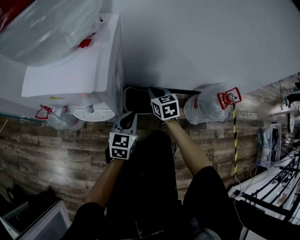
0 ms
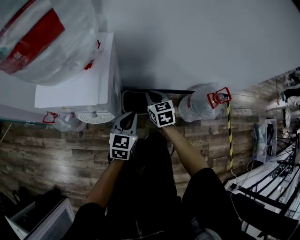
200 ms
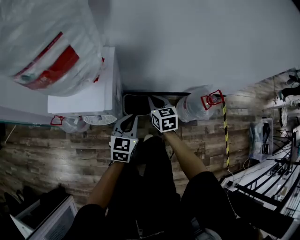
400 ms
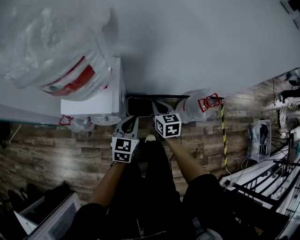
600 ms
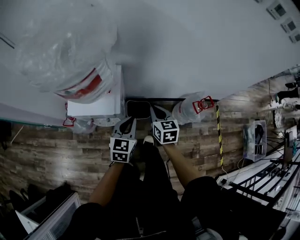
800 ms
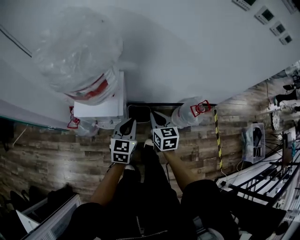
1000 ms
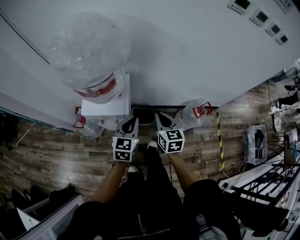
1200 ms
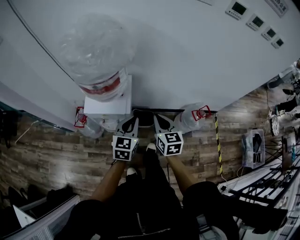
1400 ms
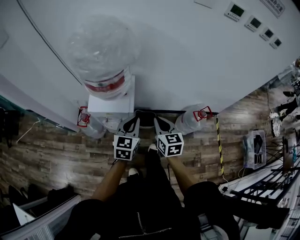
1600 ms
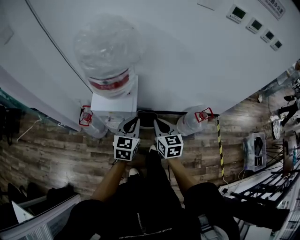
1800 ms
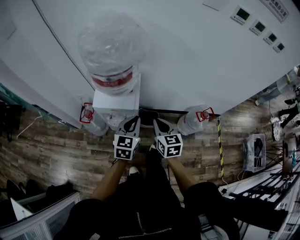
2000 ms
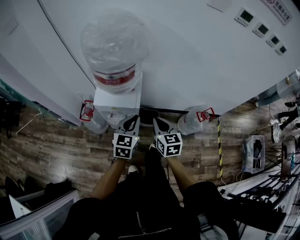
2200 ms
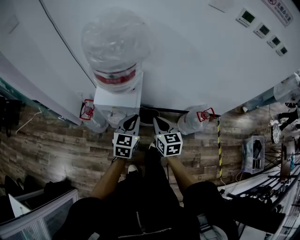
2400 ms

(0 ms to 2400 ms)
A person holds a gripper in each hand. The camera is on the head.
0 ms - 1200 ms: The two grippers go approximately 40 cm upward.
1200 ms - 2400 ms: The left gripper heads to the left, covering some 5 cm, while the right gripper heads to the left and backward, covering roughly 10 cm.

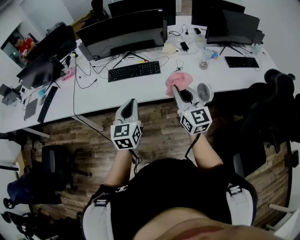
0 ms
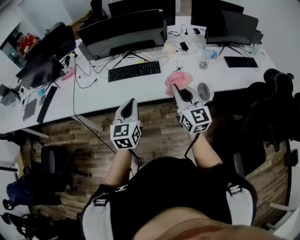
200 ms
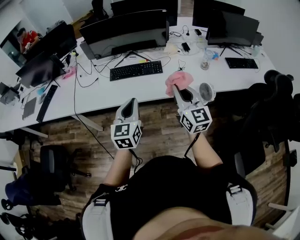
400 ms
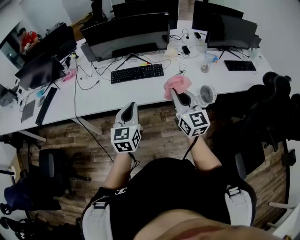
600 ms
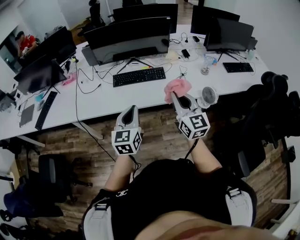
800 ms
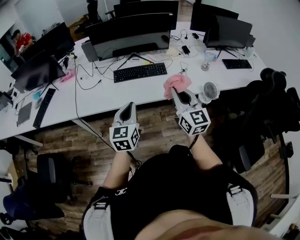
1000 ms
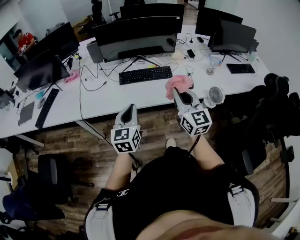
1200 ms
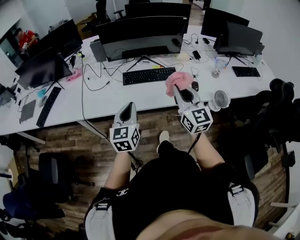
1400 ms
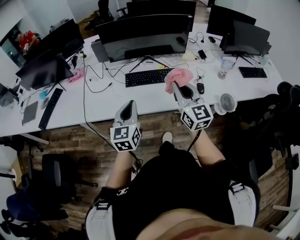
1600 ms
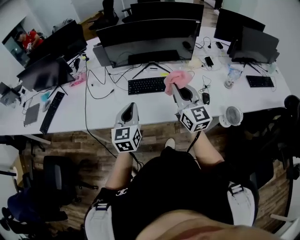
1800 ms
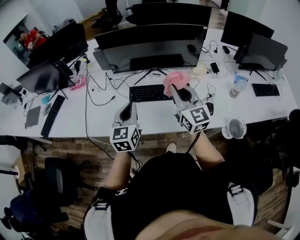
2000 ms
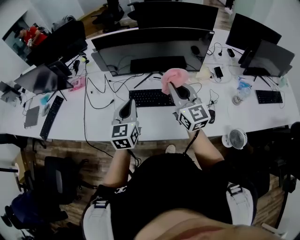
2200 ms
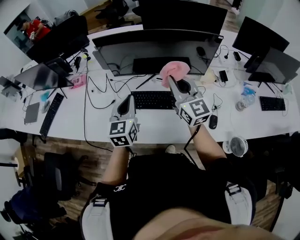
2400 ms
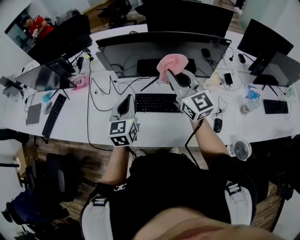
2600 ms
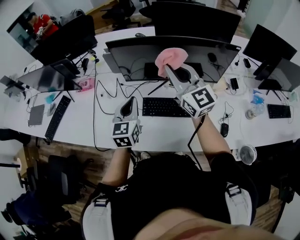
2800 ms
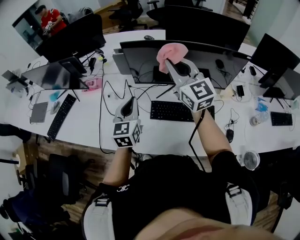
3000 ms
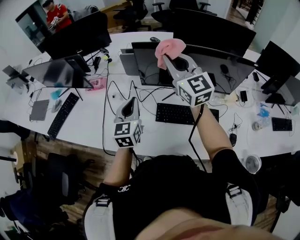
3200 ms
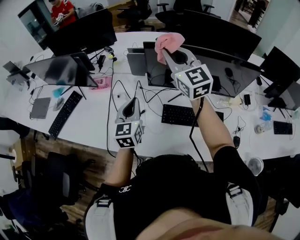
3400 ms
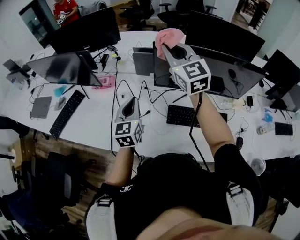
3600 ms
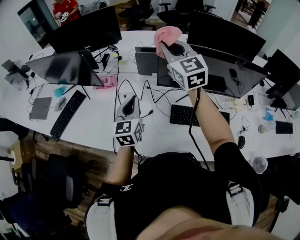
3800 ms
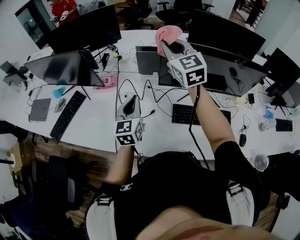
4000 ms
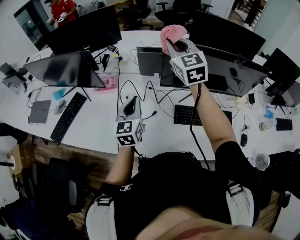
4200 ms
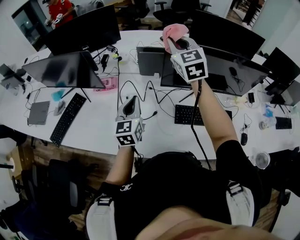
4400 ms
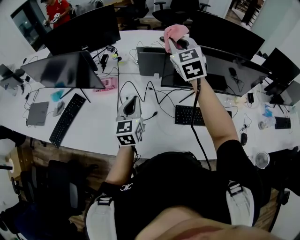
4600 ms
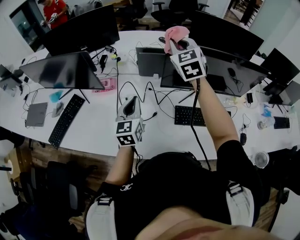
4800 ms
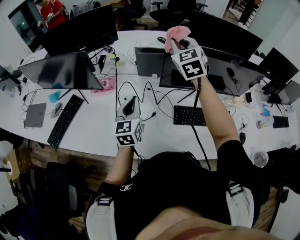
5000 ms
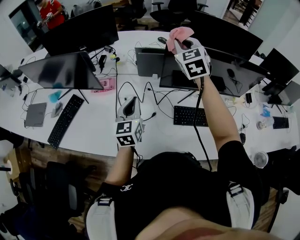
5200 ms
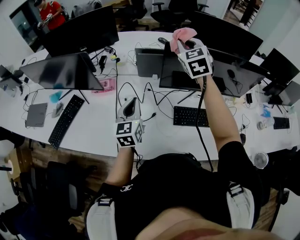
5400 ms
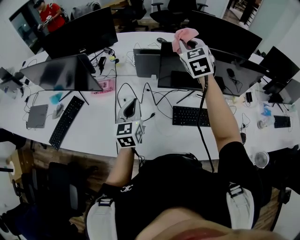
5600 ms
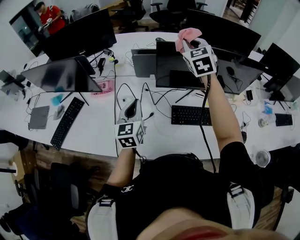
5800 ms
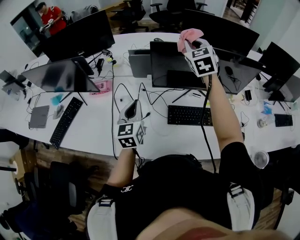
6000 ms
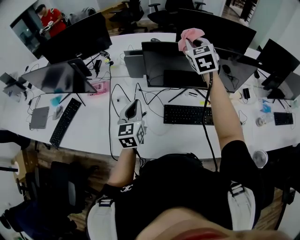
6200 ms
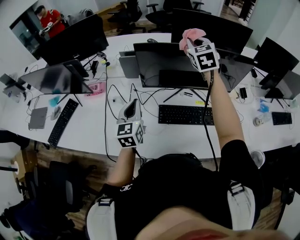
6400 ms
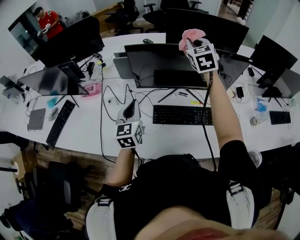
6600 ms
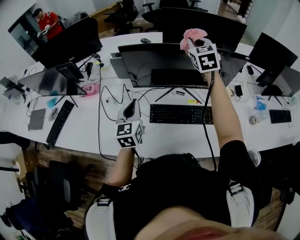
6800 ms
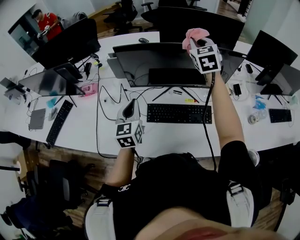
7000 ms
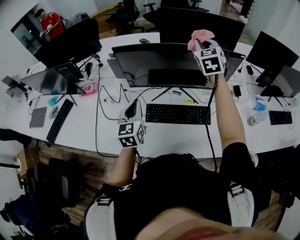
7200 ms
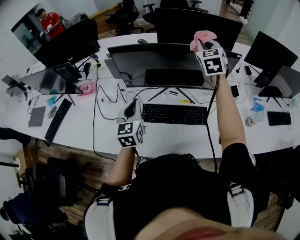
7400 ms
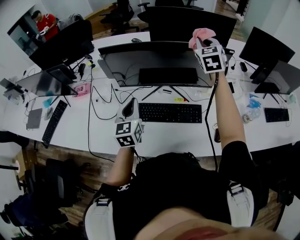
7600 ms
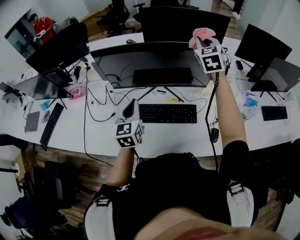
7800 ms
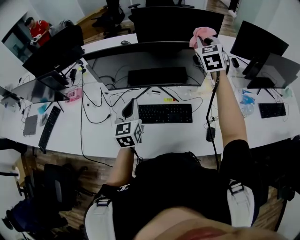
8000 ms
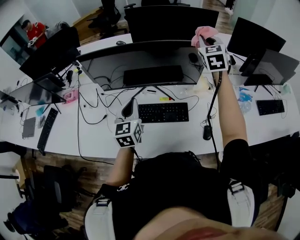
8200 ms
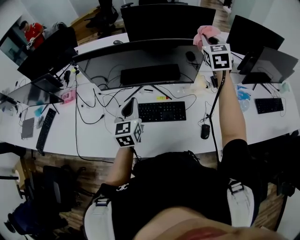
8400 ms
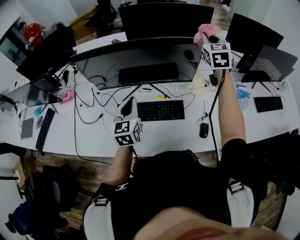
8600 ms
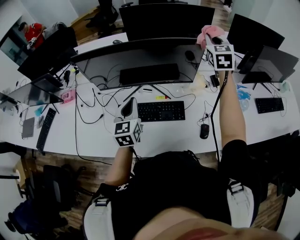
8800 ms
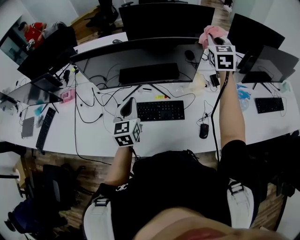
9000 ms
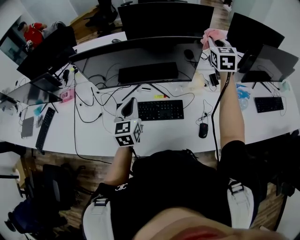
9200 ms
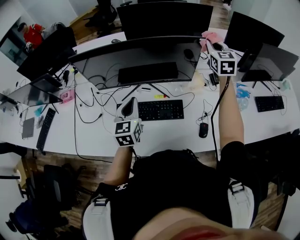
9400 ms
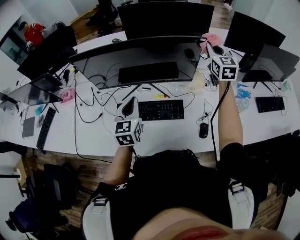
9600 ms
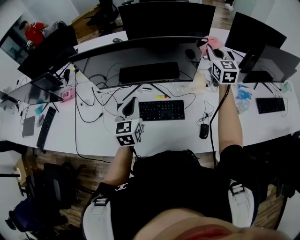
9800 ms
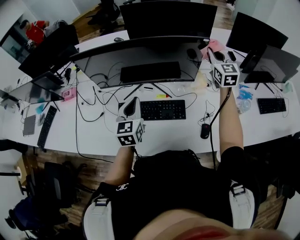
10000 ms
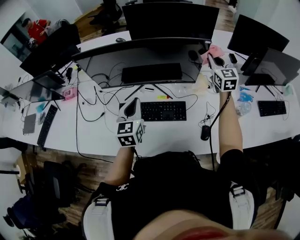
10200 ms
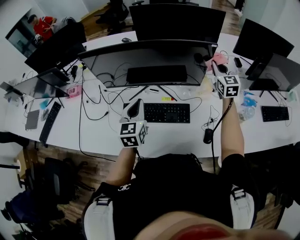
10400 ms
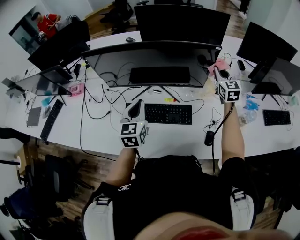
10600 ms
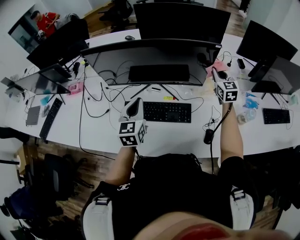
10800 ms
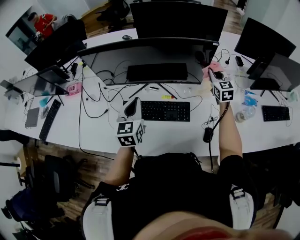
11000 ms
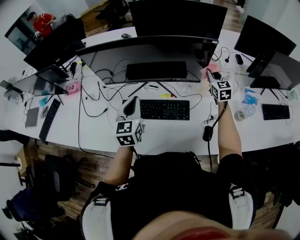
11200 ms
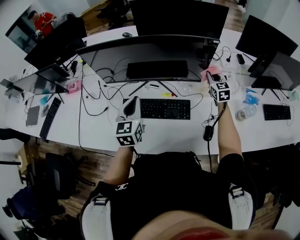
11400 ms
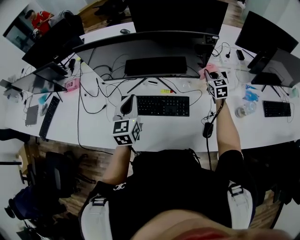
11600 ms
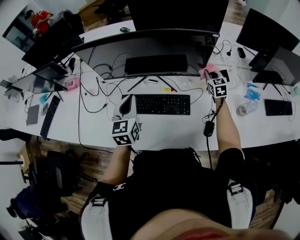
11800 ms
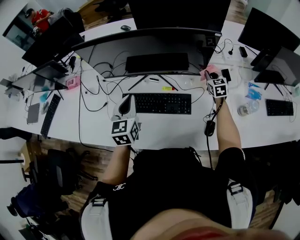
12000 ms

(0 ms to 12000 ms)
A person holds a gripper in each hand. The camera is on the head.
0 ms - 1600 ms: Both grippers travel together to the left and forward, about 20 cm.
1600 ms - 3000 ms: Both grippers travel together forward, approximately 35 cm.
3000 ms - 4400 ms: The left gripper shifts approximately 20 cm to the left and forward. The right gripper goes roughly 20 cm forward and to the left, and turns by about 20 degrees.
4400 ms - 6000 ms: The right gripper heads to the right, covering approximately 15 cm; the left gripper is displaced to the right by roughly 5 cm.
6000 ms - 7600 ms: Both grippers move to the right, some 25 cm.
7600 ms - 9000 ms: The left gripper travels to the right by about 10 cm, while the right gripper heads to the right, covering approximately 20 cm.
9000 ms - 10400 ms: The right gripper is displaced downward by some 15 cm.
10400 ms - 12000 ms: The right gripper heads downward, covering approximately 20 cm, and changes its angle by about 20 degrees.

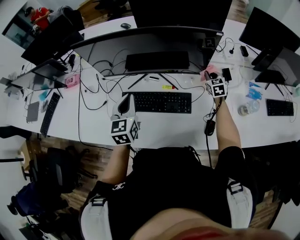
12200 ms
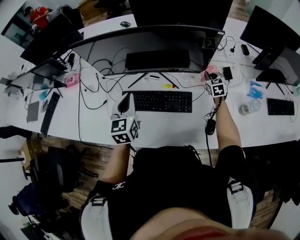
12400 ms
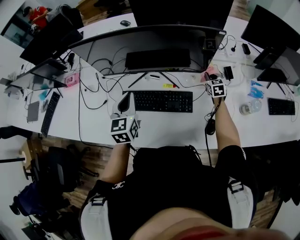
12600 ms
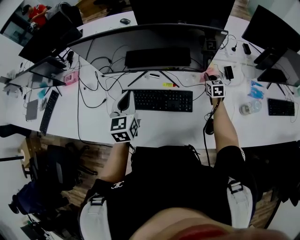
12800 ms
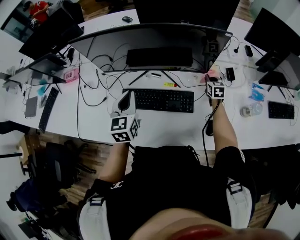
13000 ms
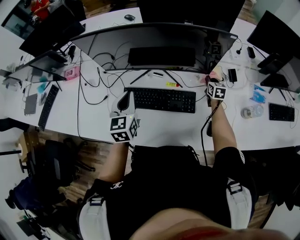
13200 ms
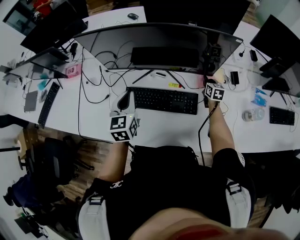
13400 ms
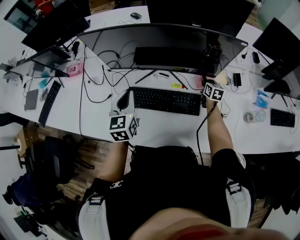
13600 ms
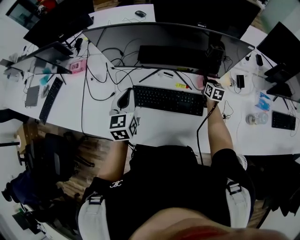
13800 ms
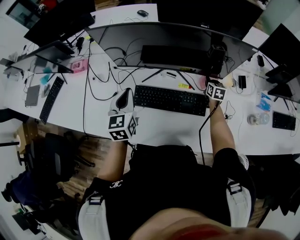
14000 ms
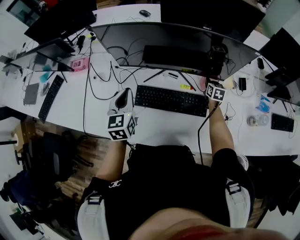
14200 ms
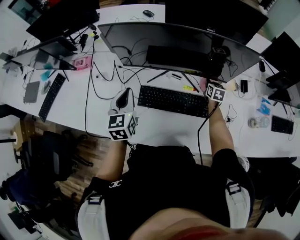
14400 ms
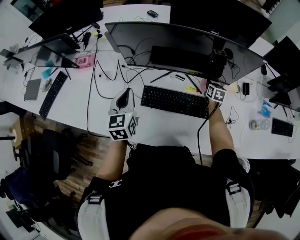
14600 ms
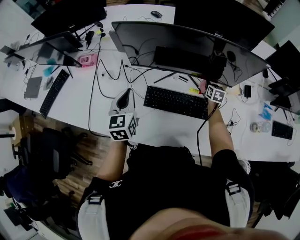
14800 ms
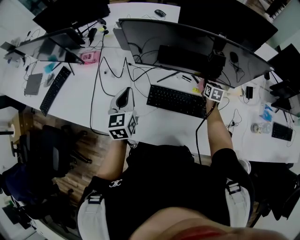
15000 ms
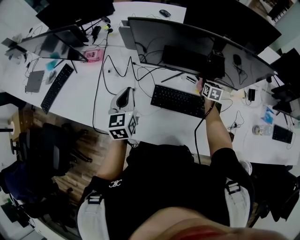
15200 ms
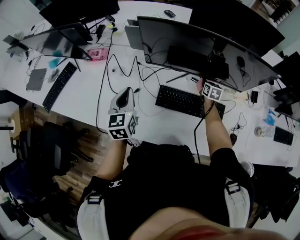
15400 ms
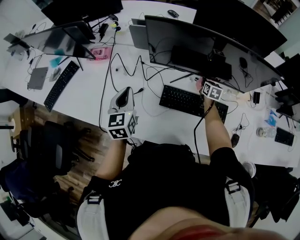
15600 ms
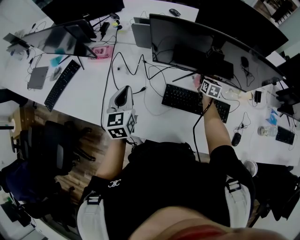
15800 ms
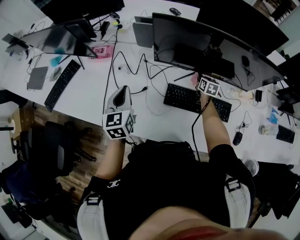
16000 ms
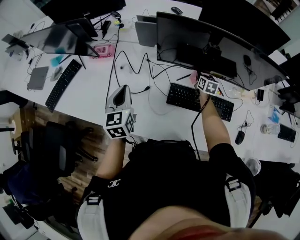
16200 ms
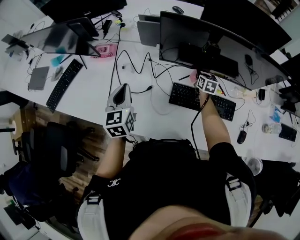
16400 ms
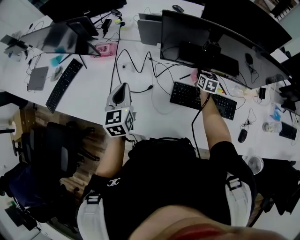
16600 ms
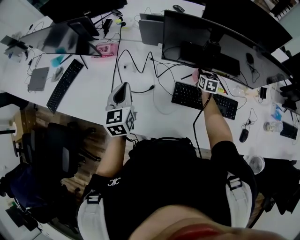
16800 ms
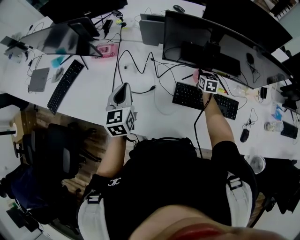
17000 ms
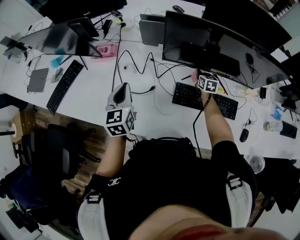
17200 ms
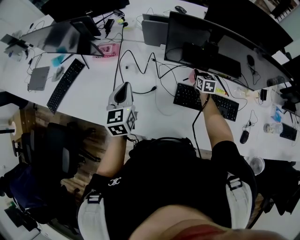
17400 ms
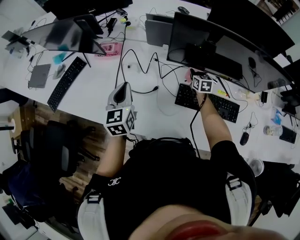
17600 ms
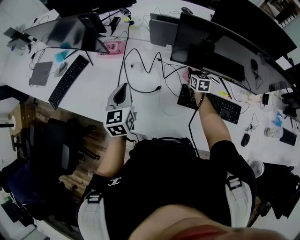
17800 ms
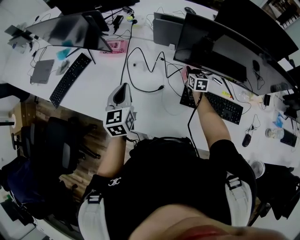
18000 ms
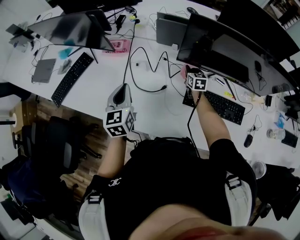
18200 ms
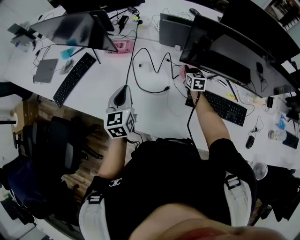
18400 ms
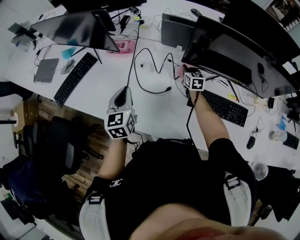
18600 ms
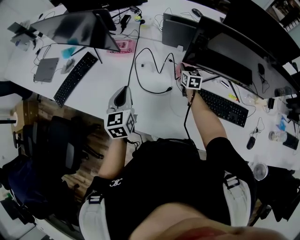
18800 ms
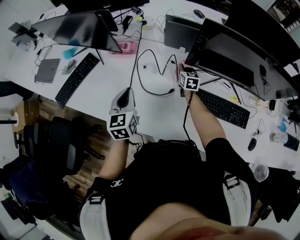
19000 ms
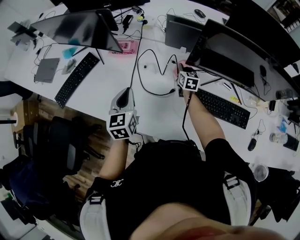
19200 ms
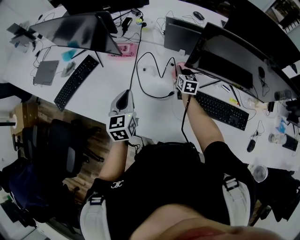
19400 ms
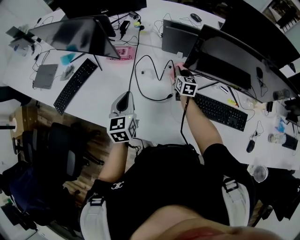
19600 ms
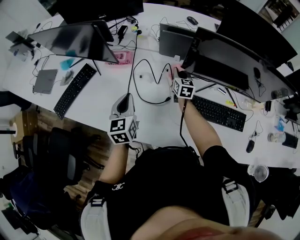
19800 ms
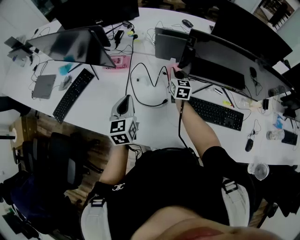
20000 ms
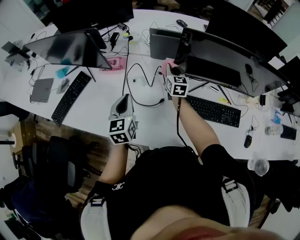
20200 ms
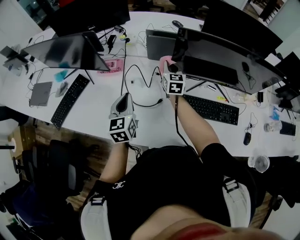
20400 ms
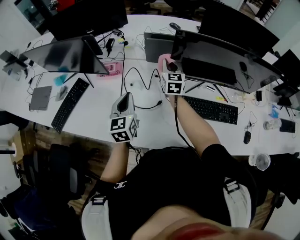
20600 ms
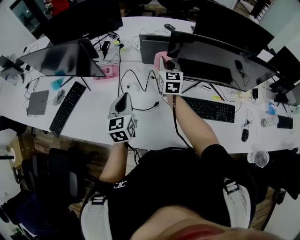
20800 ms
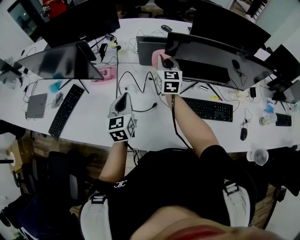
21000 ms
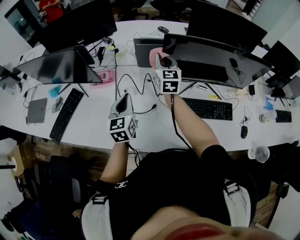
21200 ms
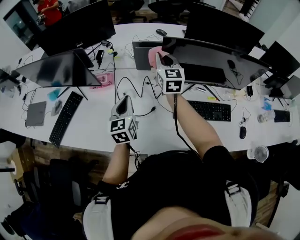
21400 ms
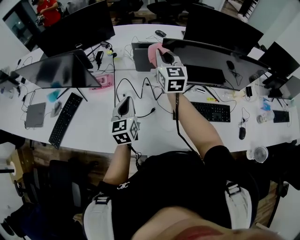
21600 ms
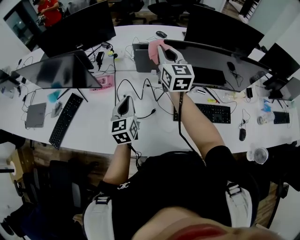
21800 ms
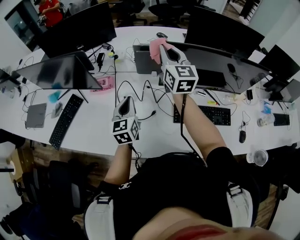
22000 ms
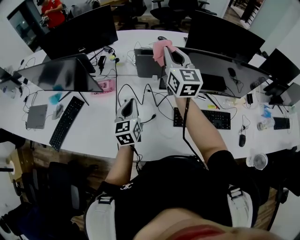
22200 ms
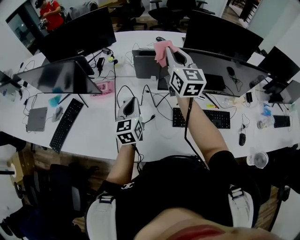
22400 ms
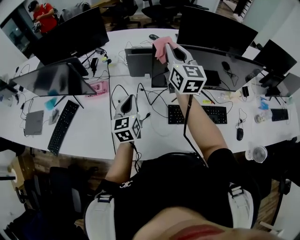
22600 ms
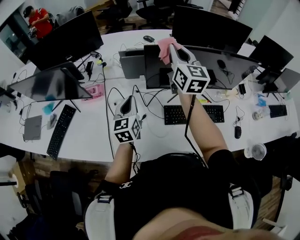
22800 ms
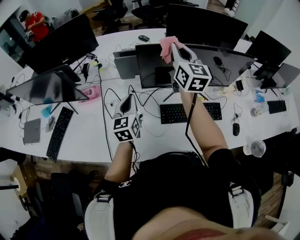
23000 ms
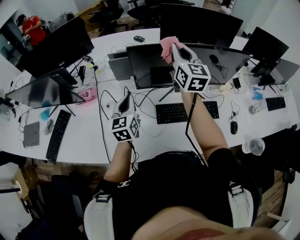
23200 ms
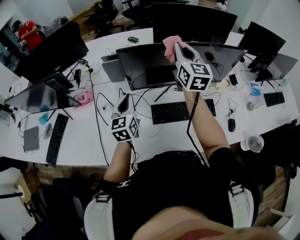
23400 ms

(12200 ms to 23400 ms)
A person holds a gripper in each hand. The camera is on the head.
12200 ms - 13800 ms: The right gripper travels to the left and downward by approximately 10 cm, and swivels roughly 30 degrees; the left gripper travels to the left by approximately 10 cm.
13800 ms - 15400 ms: The grippers both shift to the left by some 20 cm.
15400 ms - 17000 ms: The two grippers go some 10 cm to the left.
17000 ms - 18600 ms: The right gripper heads to the left, covering some 20 cm; the left gripper is displaced to the left by about 10 cm.
18600 ms - 20200 ms: The right gripper travels upward by about 10 cm.
20200 ms - 21800 ms: The left gripper moves approximately 5 cm; the right gripper goes some 25 cm upward.
21800 ms - 23400 ms: The right gripper heads to the right, covering some 25 cm; the left gripper is displaced to the right by about 15 cm.
